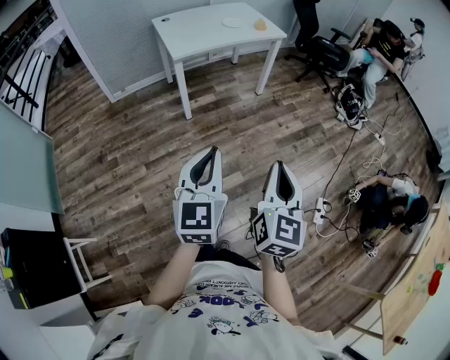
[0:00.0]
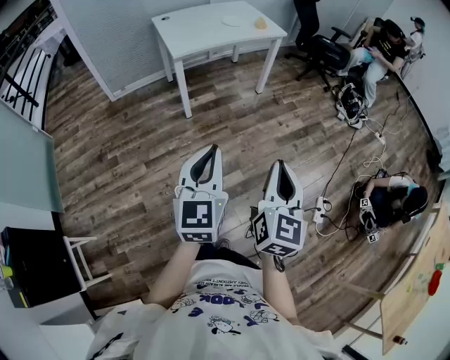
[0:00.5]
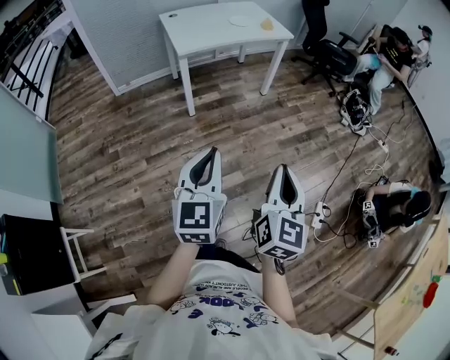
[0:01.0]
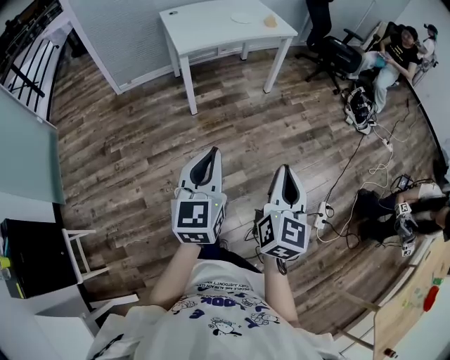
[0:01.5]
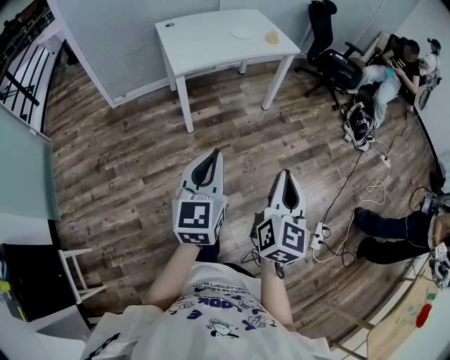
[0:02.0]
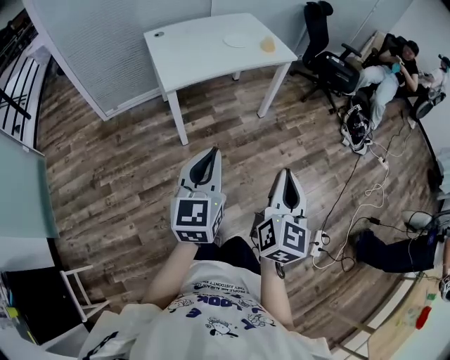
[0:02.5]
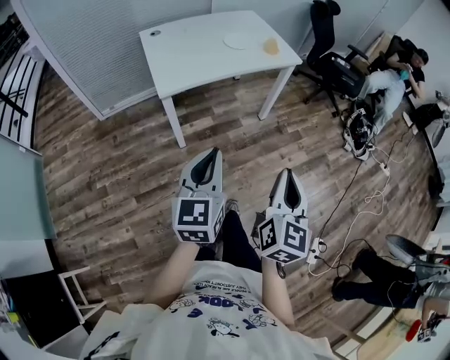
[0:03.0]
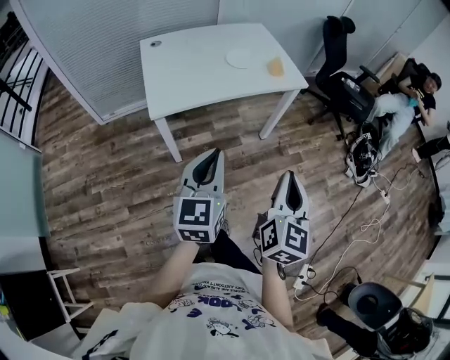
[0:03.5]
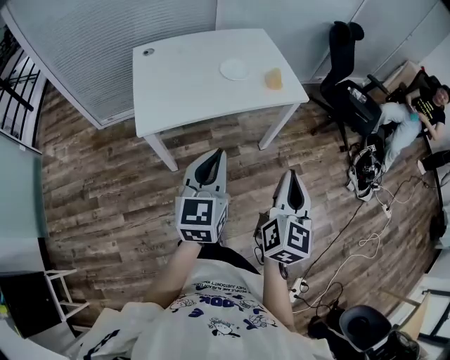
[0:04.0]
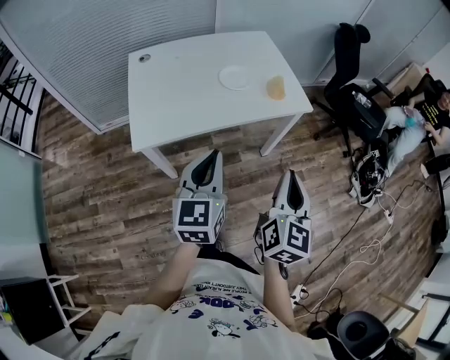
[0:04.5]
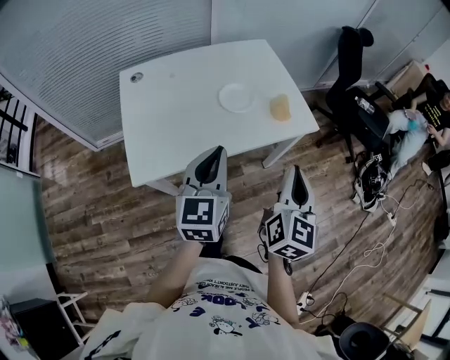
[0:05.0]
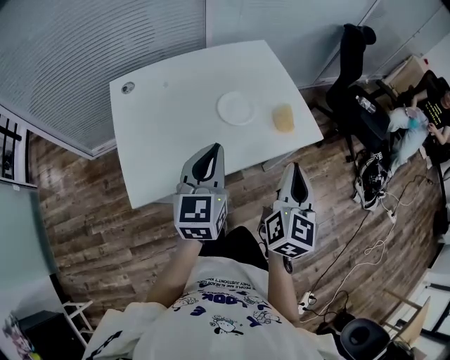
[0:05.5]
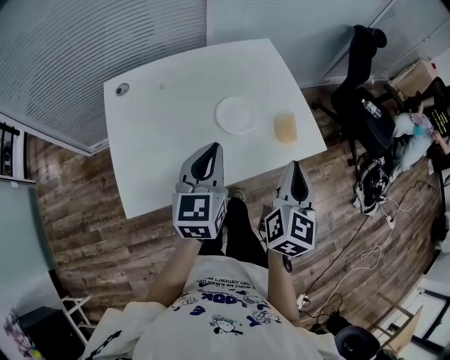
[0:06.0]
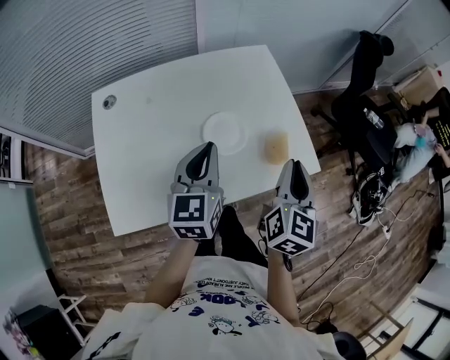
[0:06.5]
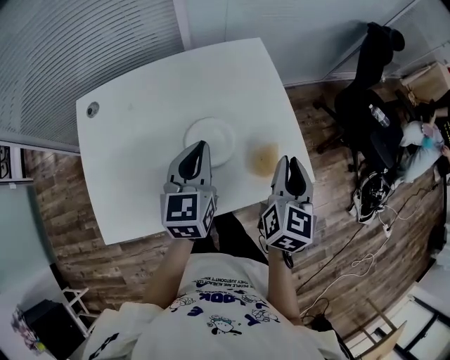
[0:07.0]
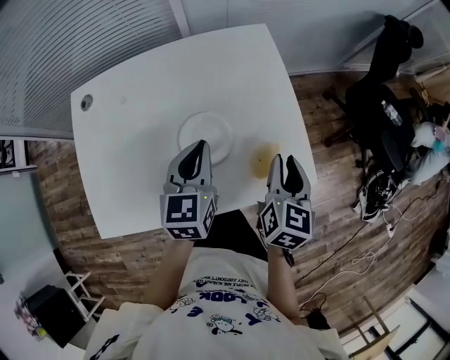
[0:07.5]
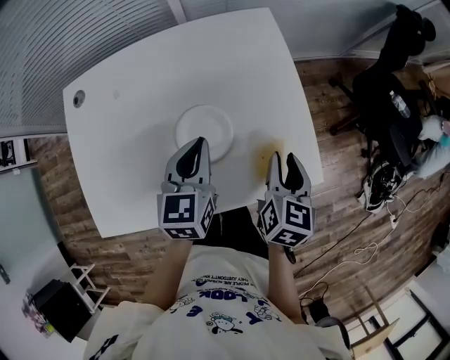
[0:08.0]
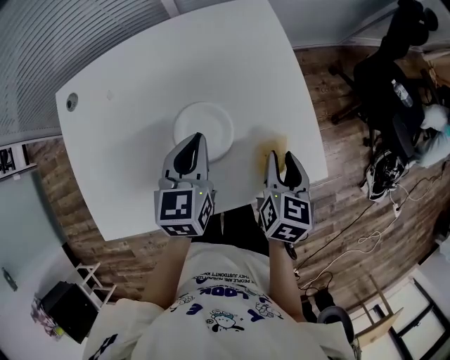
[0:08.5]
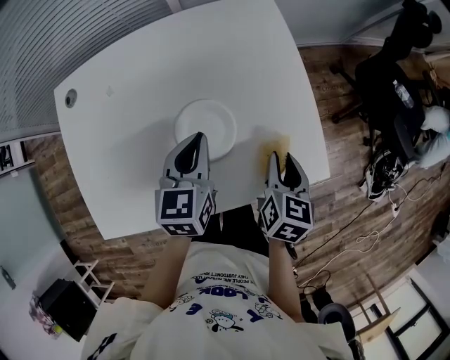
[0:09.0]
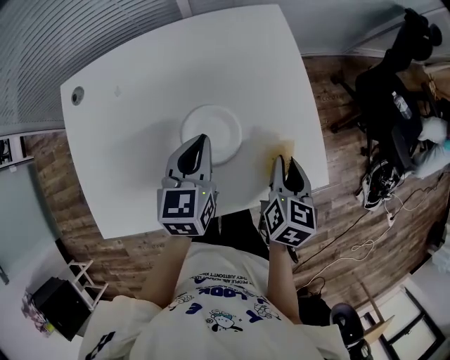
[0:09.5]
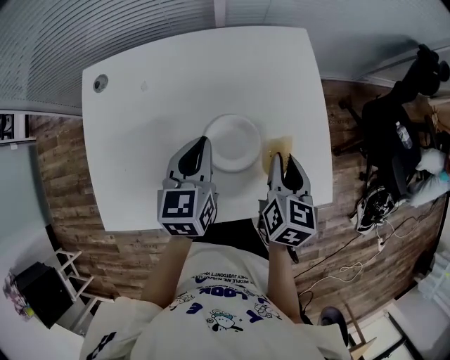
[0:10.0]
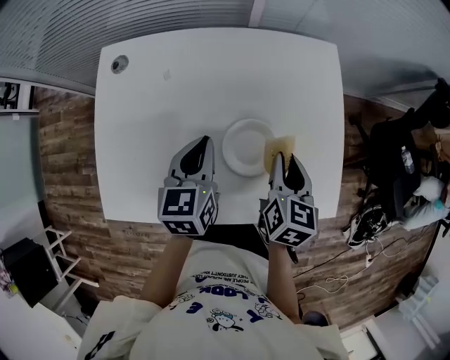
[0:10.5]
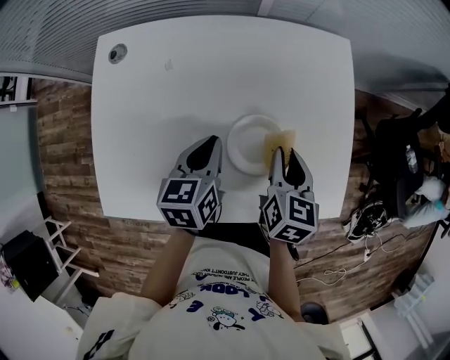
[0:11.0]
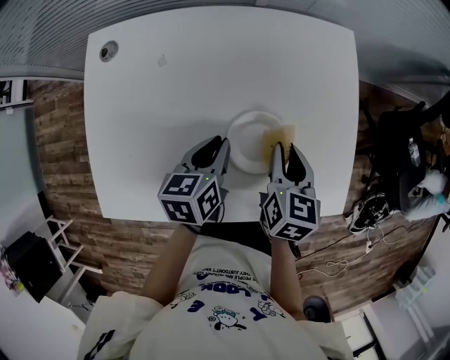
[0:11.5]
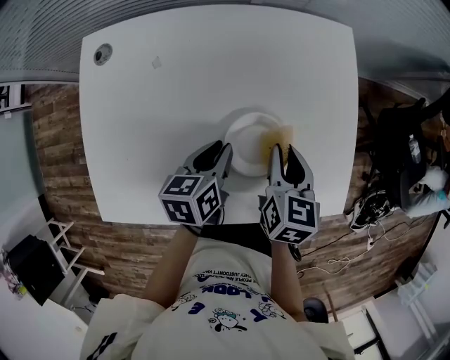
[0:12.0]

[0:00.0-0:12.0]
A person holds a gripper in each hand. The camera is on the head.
0.0 to 2.0 s: The grippers both shift forward by roughly 15 cm.
2.0 to 4.0 s: Both grippers are carried forward, roughly 40 cm.
4.0 to 6.0 s: The grippers both shift forward by approximately 30 cm.
6.0 to 8.0 s: The grippers both shift forward and downward by about 20 cm. The right gripper rotates some 30 degrees, and opens up.
8.0 to 10.0 s: The two grippers go roughly 5 cm to the left.
10.0 to 12.0 s: The left gripper moves downward, approximately 10 cm, and rotates about 30 degrees. The right gripper is displaced to the left by roughly 5 cm.

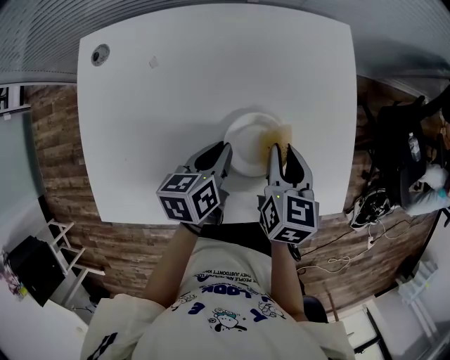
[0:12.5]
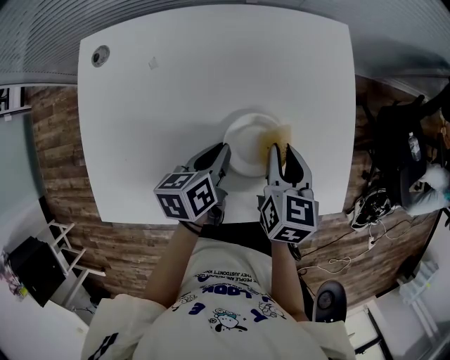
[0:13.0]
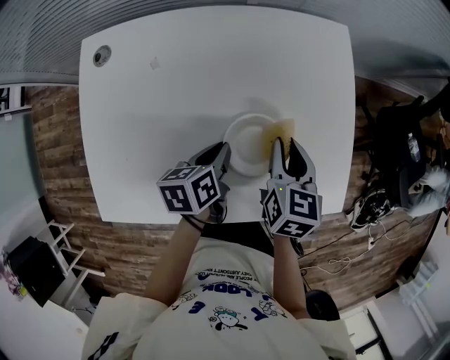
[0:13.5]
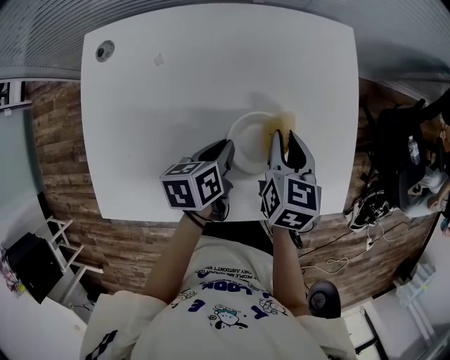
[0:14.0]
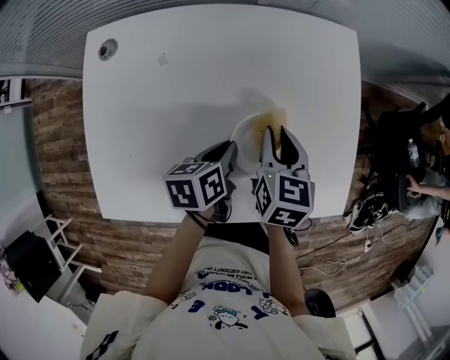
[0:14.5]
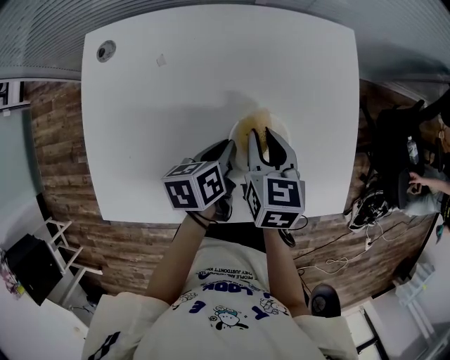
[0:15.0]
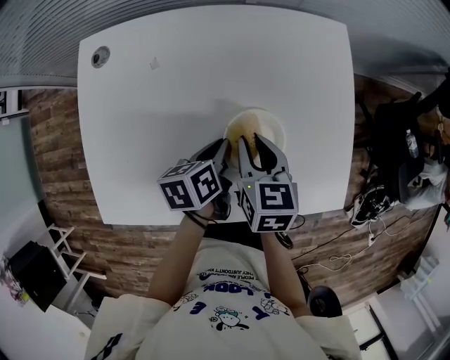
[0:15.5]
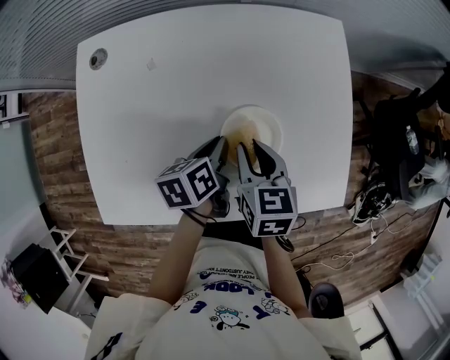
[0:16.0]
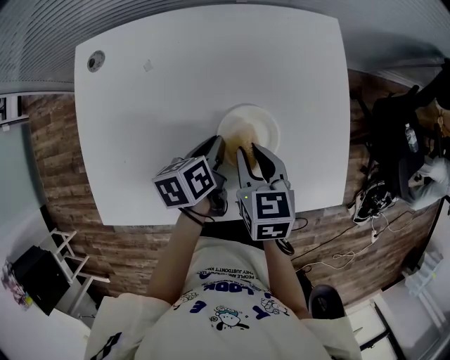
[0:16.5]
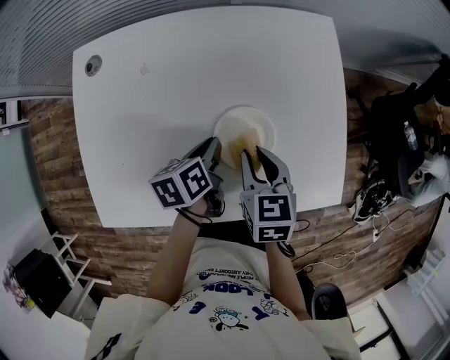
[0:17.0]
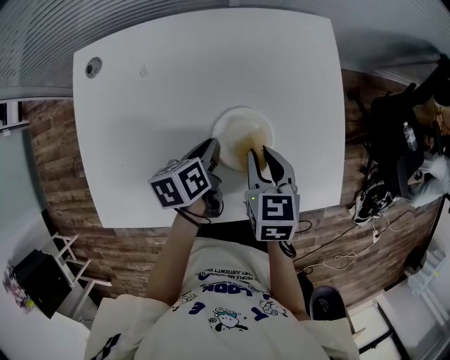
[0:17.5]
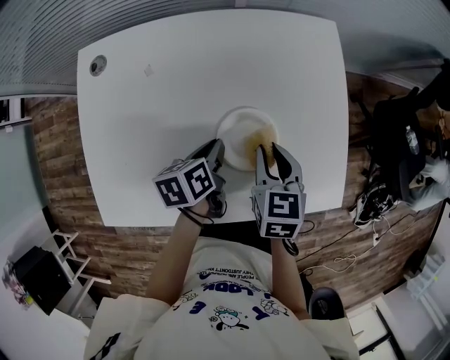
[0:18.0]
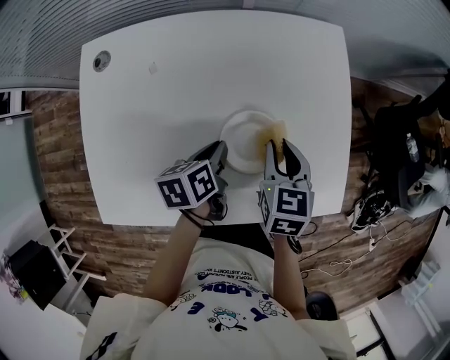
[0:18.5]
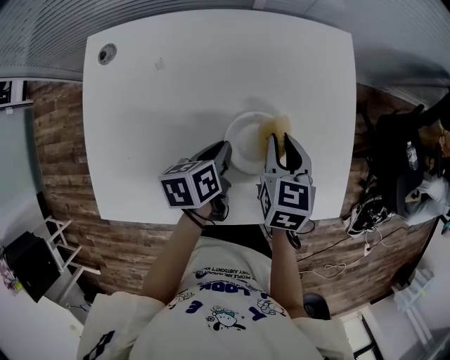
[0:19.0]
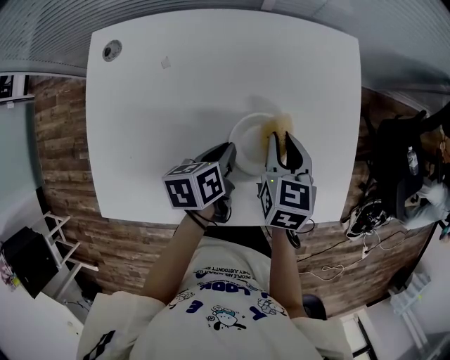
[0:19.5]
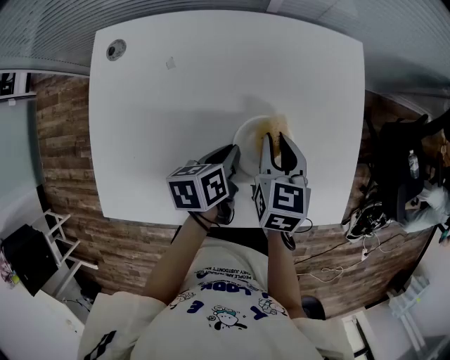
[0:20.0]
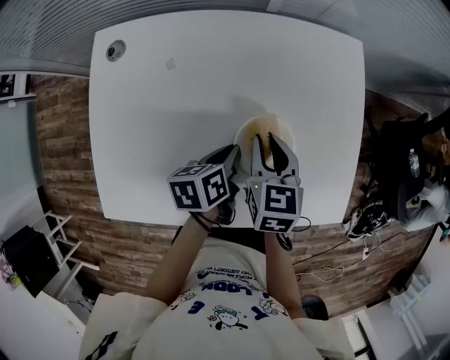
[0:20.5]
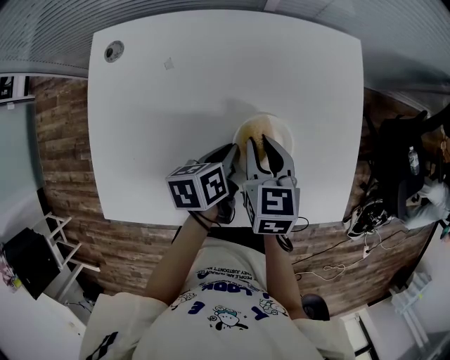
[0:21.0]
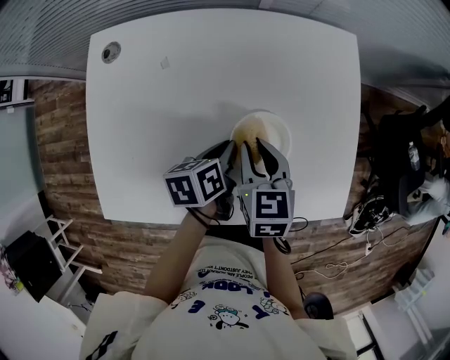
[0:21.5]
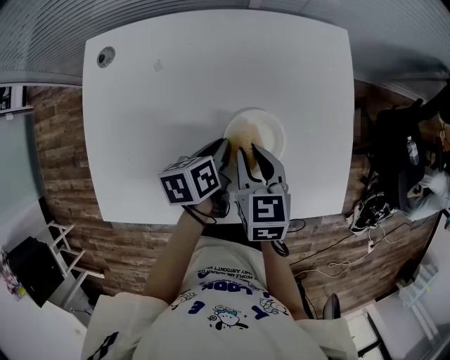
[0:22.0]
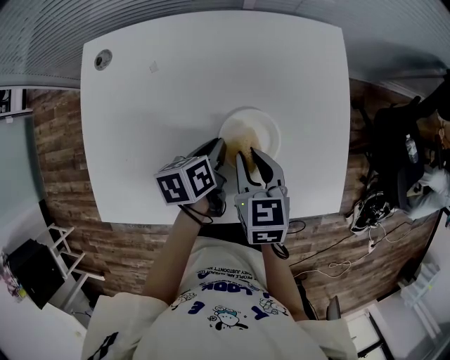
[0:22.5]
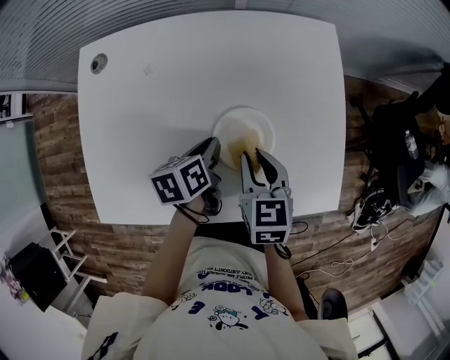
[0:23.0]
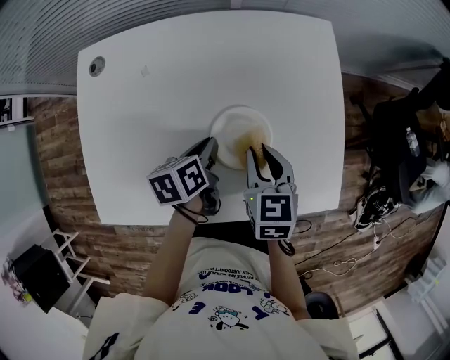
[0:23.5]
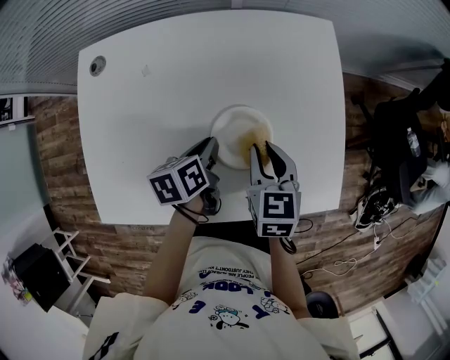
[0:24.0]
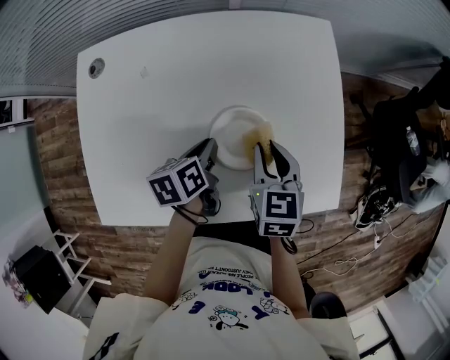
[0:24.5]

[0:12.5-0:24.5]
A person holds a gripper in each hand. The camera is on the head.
12.5 to 14.5 s: The right gripper changes place by roughly 5 cm.
14.5 to 16.5 s: The right gripper travels backward by roughly 5 cm.
16.5 to 18.5 s: The right gripper is displaced to the right by about 5 cm.
18.5 to 20.5 s: The right gripper moves to the left, roughly 5 cm.
20.5 to 22.5 s: The right gripper travels backward by some 5 cm.
22.5 to 24.5 s: The right gripper travels to the right by roughly 5 cm.

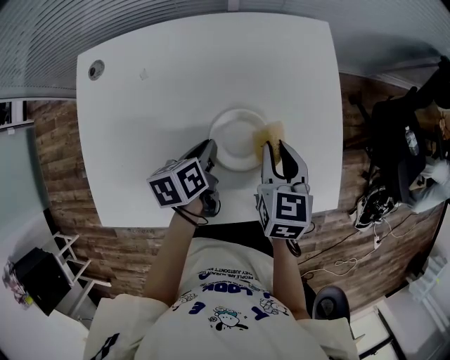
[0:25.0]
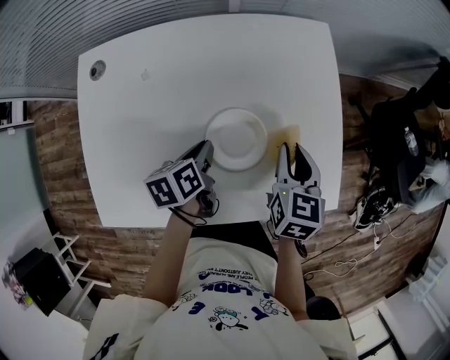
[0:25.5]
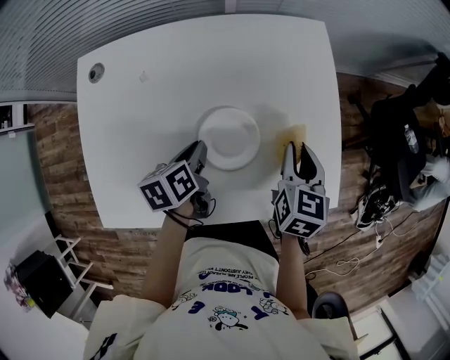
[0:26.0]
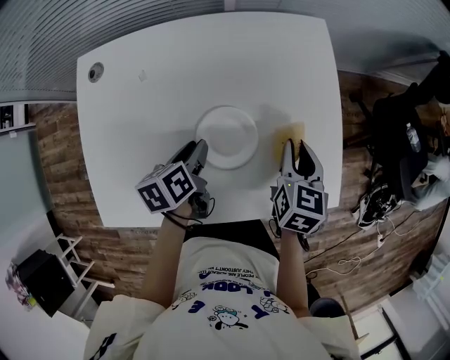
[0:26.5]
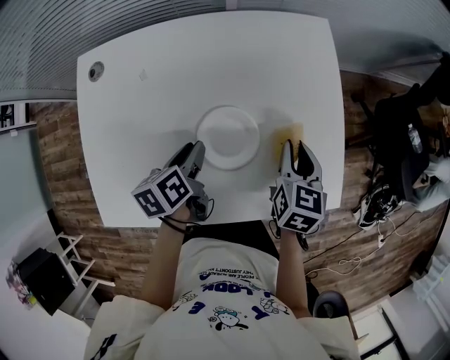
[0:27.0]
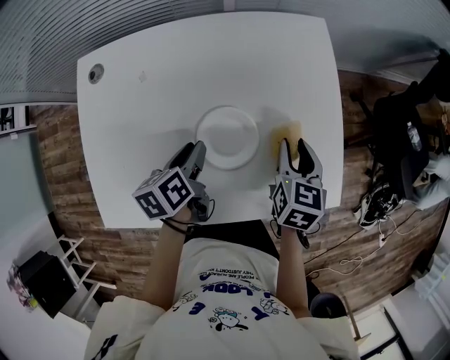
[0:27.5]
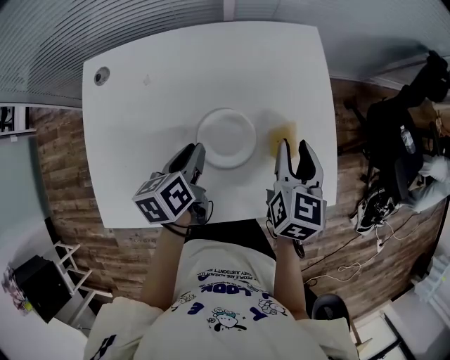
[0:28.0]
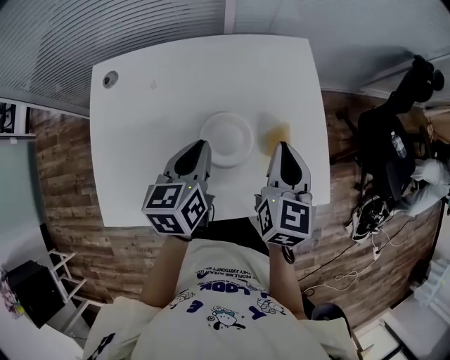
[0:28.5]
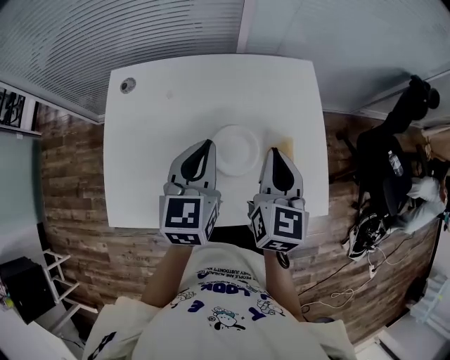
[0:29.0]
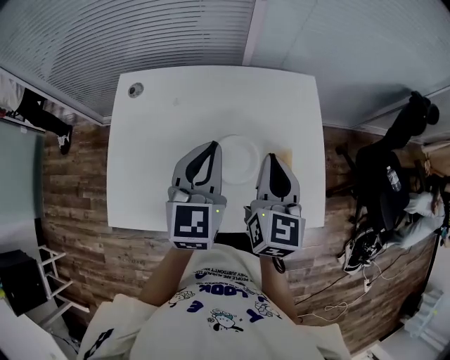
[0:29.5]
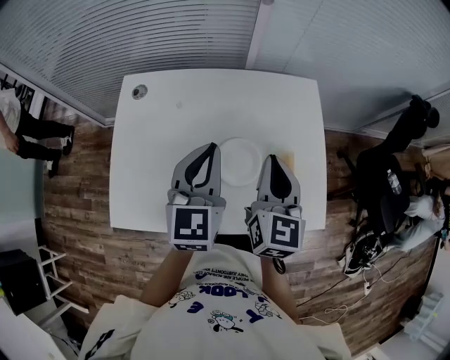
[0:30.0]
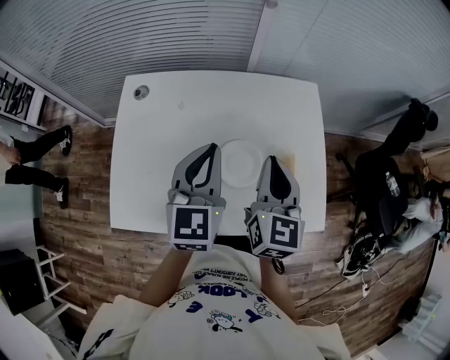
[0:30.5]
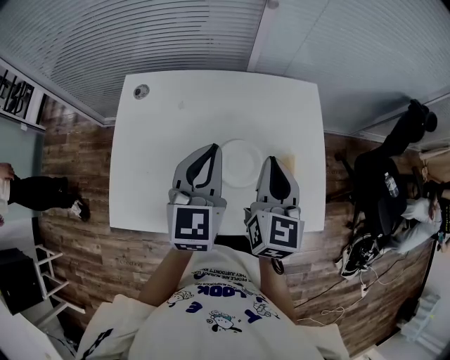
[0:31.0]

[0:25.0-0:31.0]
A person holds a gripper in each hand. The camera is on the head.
25.0 to 27.0 s: The right gripper moves to the right, about 5 cm, while the left gripper opens up.
27.0 to 29.0 s: The left gripper is displaced upward by approximately 20 cm, rotates around the line of its fingers by some 40 degrees, clockwise from behind, and closes up. The right gripper heads upward and to the left, covering roughly 20 cm, and changes its angle by about 20 degrees.
29.0 to 31.0 s: The grippers move only a little.
